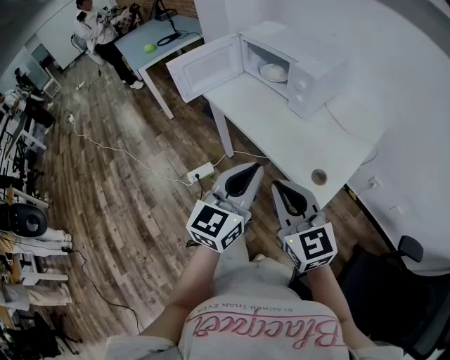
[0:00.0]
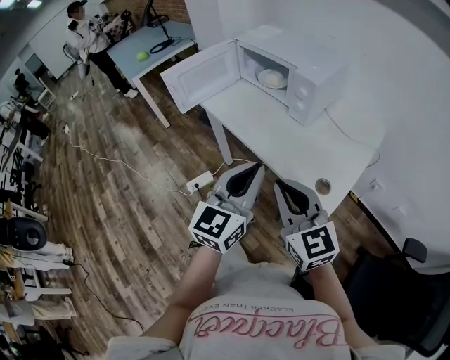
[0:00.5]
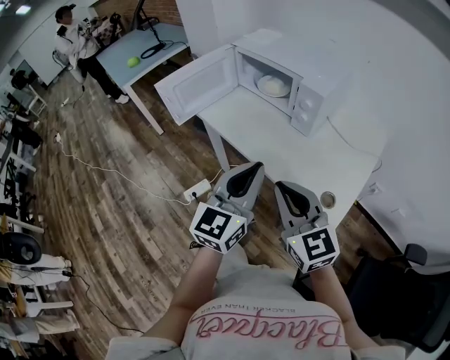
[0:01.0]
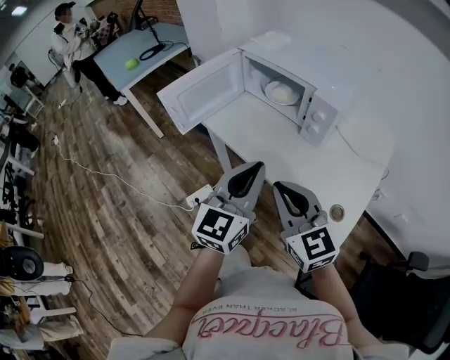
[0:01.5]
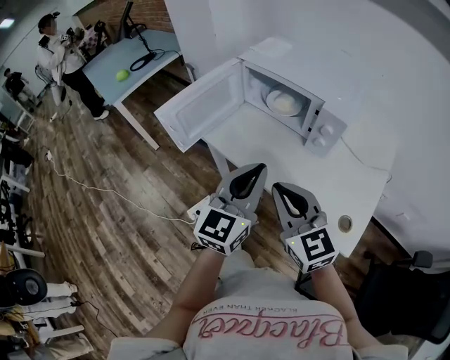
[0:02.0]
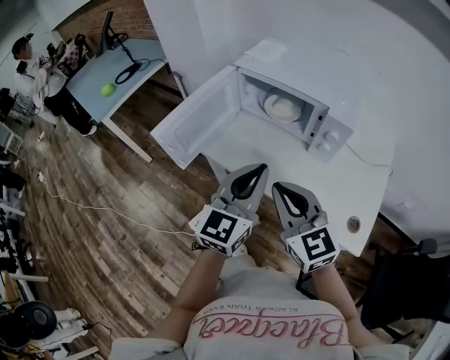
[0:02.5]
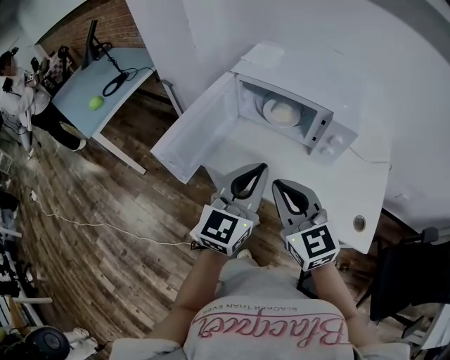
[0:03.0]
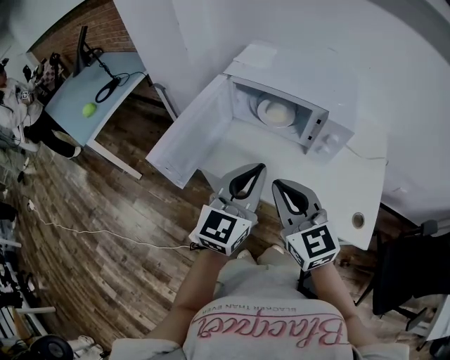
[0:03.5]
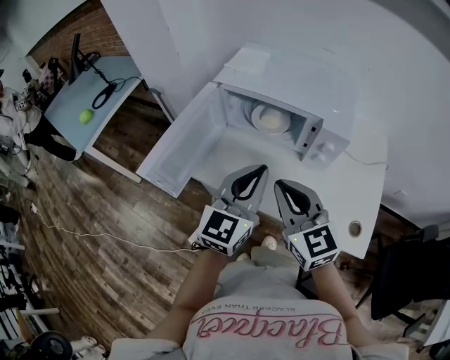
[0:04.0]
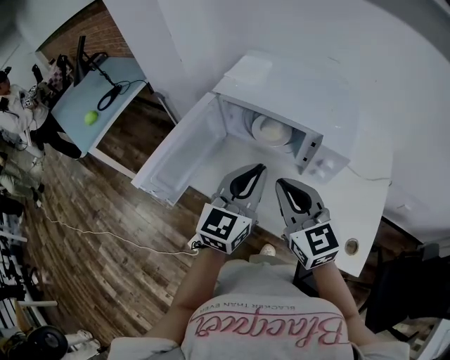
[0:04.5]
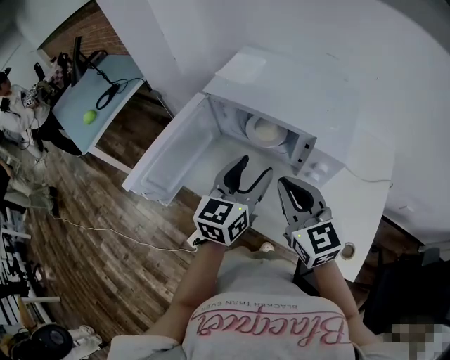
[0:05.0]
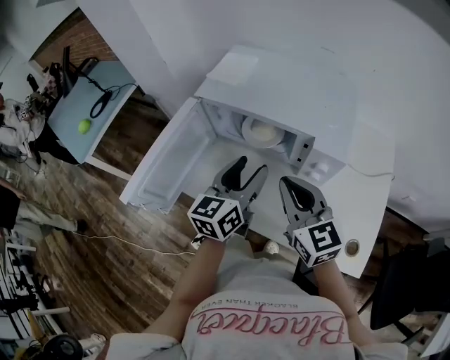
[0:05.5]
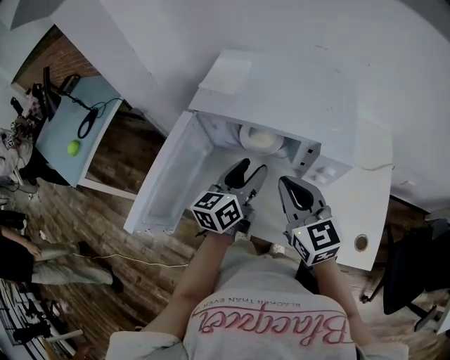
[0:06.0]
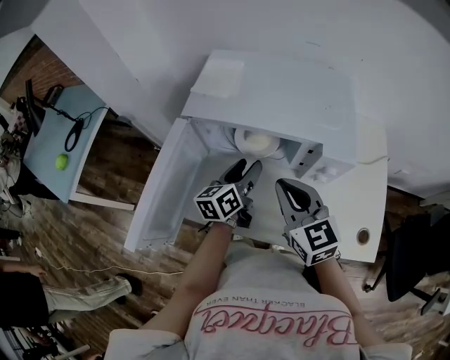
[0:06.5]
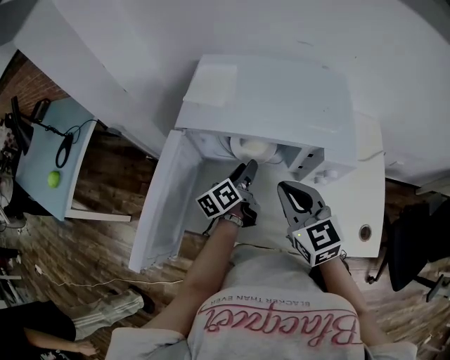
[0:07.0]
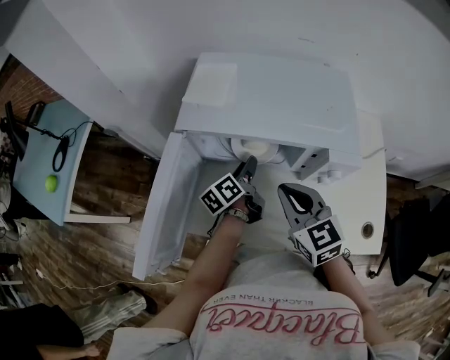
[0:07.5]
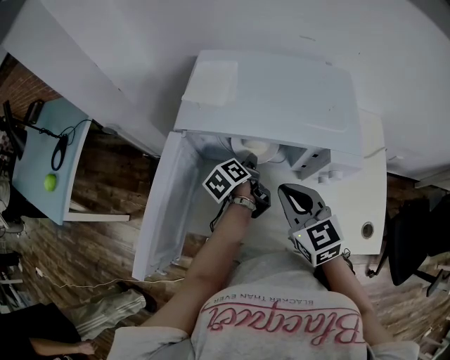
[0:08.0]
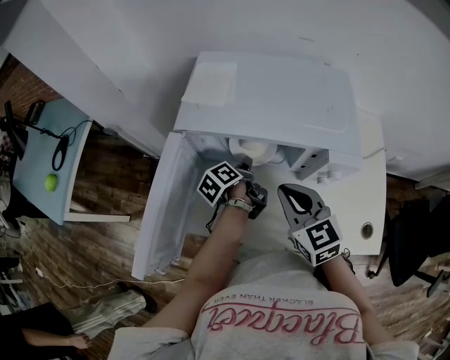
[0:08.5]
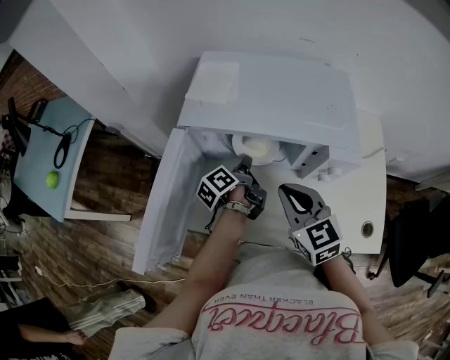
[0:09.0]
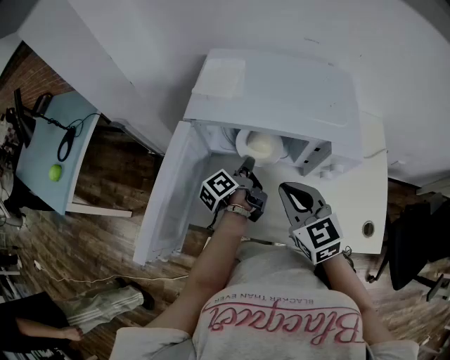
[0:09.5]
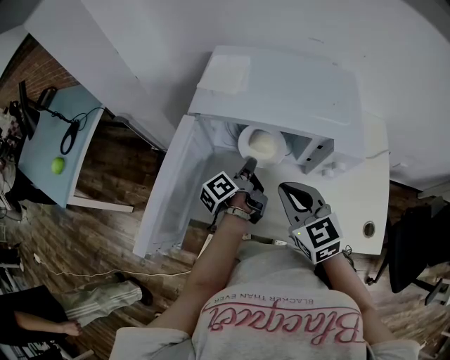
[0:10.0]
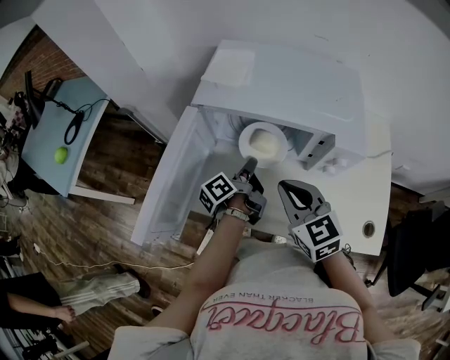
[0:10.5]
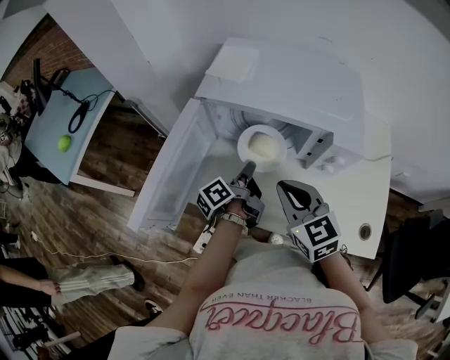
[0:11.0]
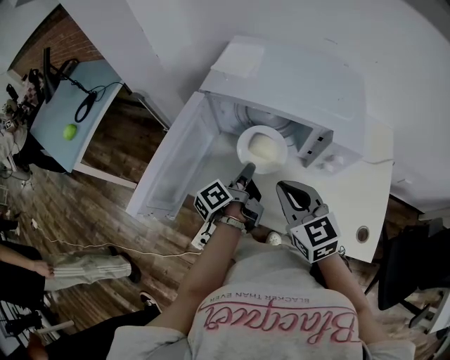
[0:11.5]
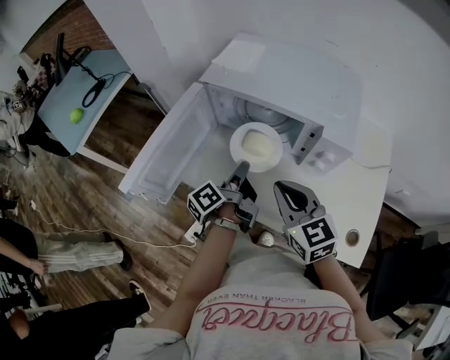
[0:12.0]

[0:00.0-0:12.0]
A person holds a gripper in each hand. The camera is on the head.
0:00.0 to 0:02.0: The two grippers go about 25 cm forward and to the left.
0:02.0 to 0:04.0: Both grippers travel together forward, roughly 10 cm.
0:04.0 to 0:06.0: The left gripper moves forward and downward, approximately 20 cm, changes its angle by some 30 degrees, and opens its fingers. The right gripper is displaced forward by some 10 cm.
0:06.0 to 0:08.0: The left gripper shifts about 15 cm downward and forward, and rotates around the line of its fingers by some 40 degrees, counterclockwise from behind; the right gripper goes about 5 cm downward.
0:08.0 to 0:10.0: The left gripper shifts by approximately 5 cm, rotates approximately 30 degrees, and closes its fingers.
0:10.0 to 0:12.0: The left gripper shifts some 10 cm backward, while the right gripper shifts about 5 cm backward.

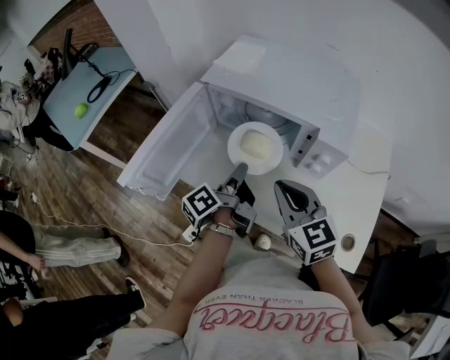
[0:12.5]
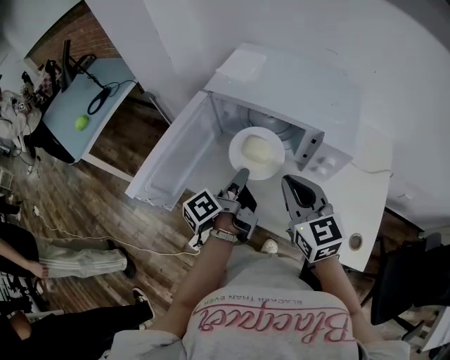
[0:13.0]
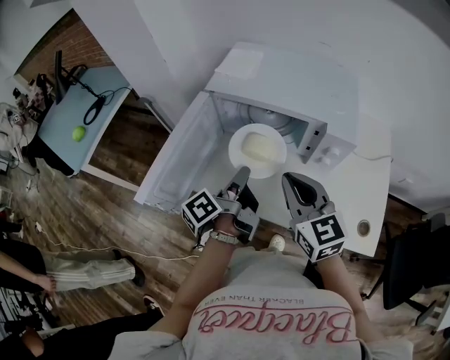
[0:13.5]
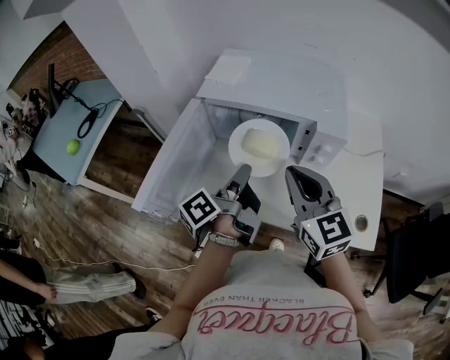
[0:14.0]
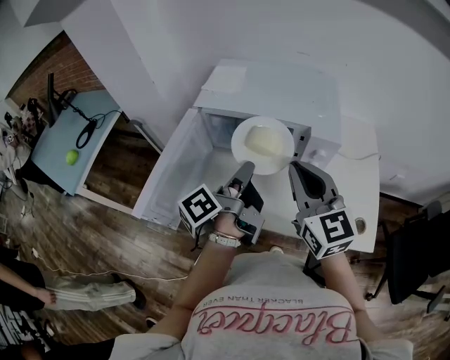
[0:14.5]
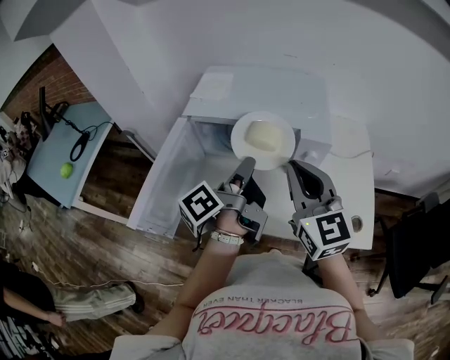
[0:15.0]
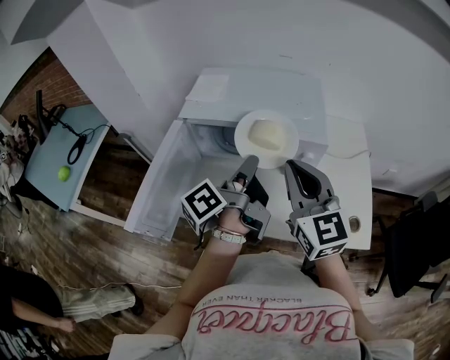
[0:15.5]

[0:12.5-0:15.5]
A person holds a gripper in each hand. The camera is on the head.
0:12.5 to 0:14.0: Both grippers move upward, some 5 cm.
0:14.0 to 0:15.5: The right gripper changes place by about 5 cm, while the left gripper shifts some 10 cm to the right and upward.

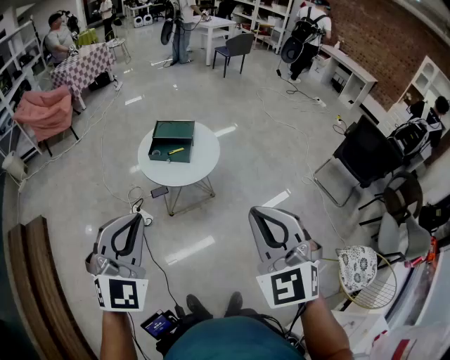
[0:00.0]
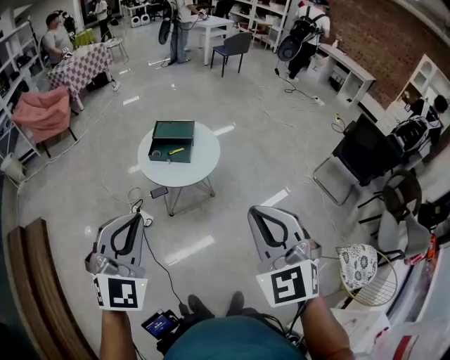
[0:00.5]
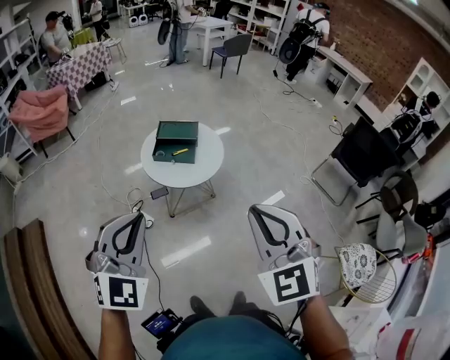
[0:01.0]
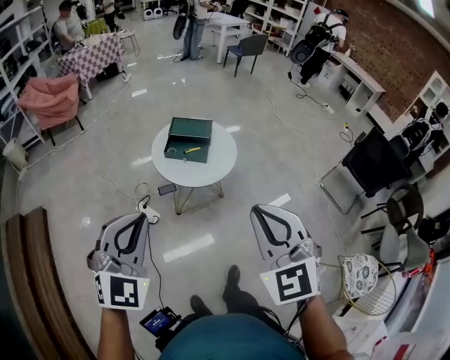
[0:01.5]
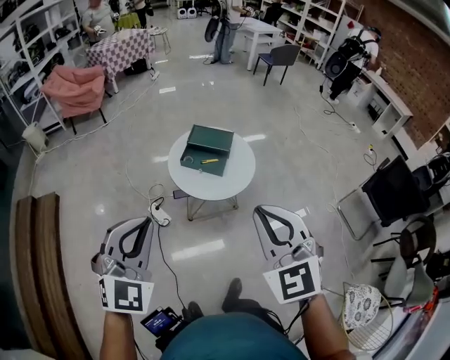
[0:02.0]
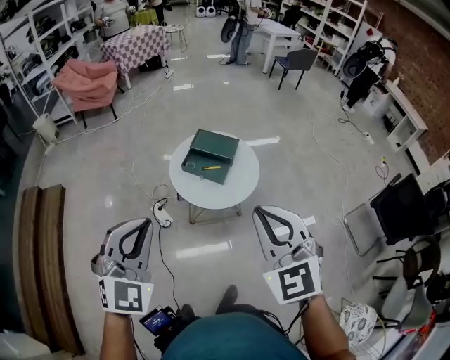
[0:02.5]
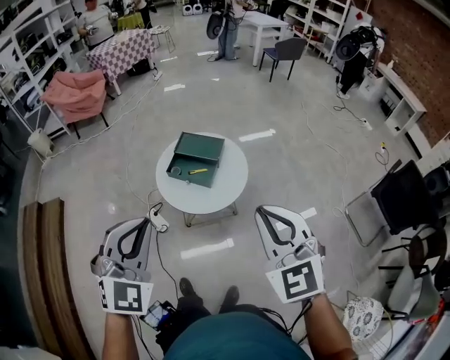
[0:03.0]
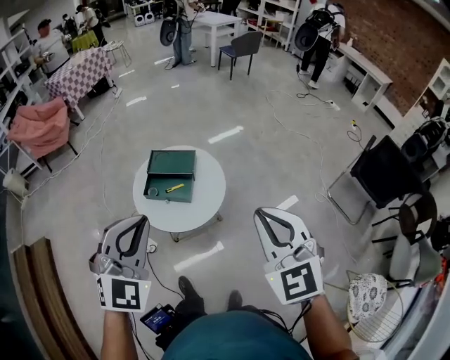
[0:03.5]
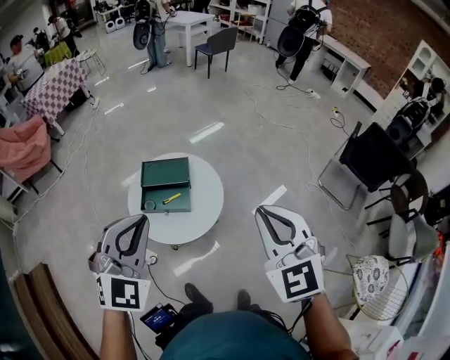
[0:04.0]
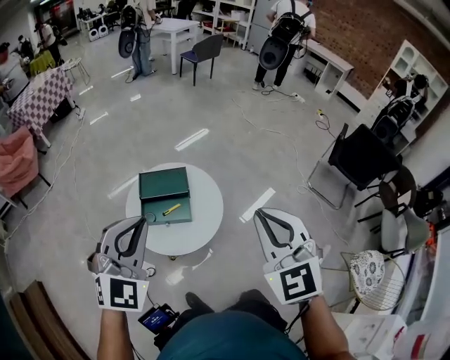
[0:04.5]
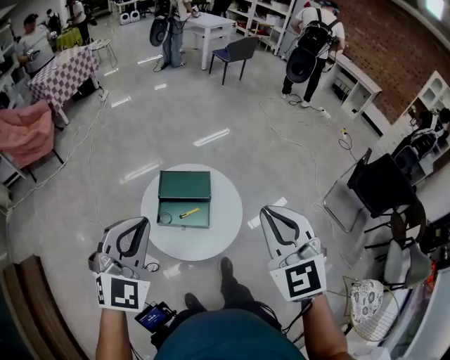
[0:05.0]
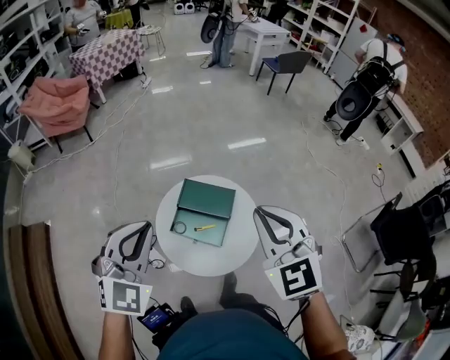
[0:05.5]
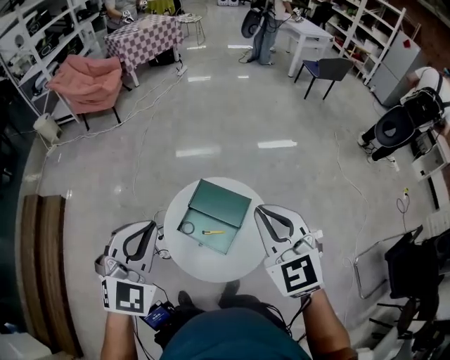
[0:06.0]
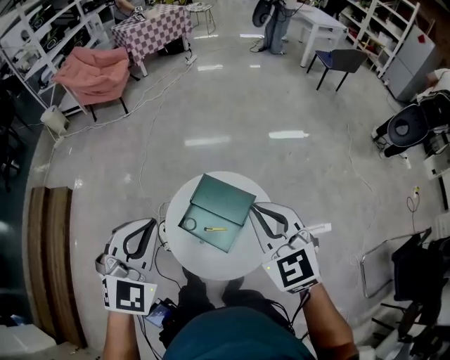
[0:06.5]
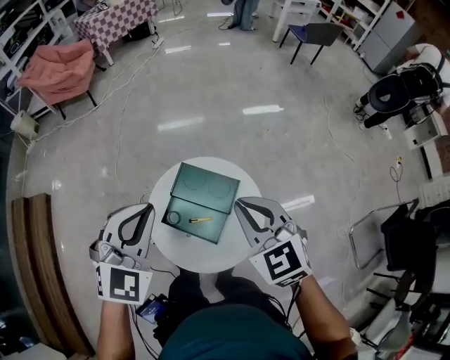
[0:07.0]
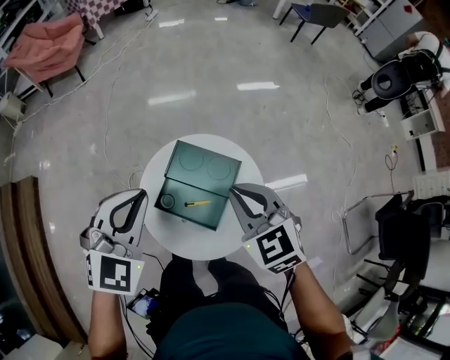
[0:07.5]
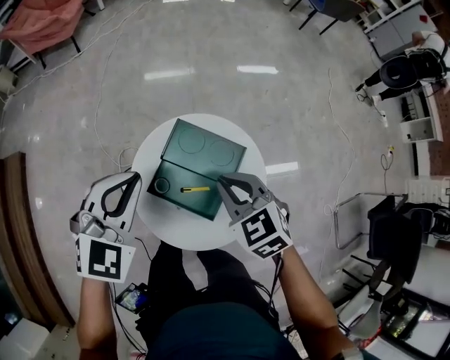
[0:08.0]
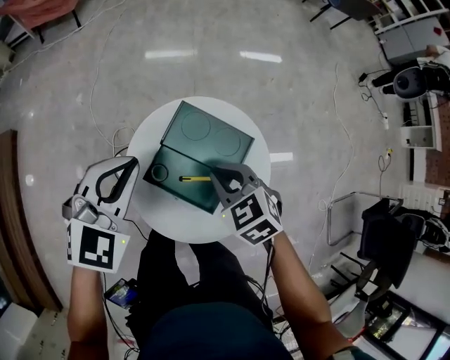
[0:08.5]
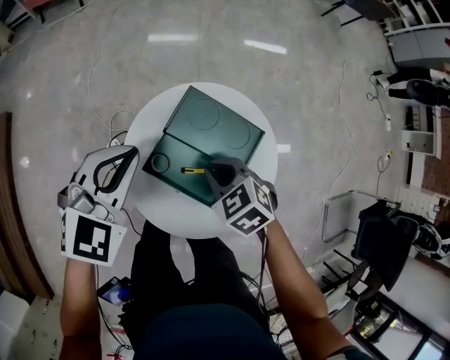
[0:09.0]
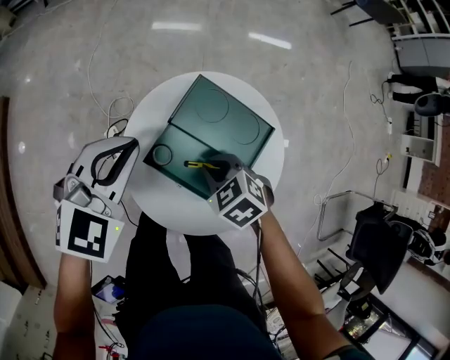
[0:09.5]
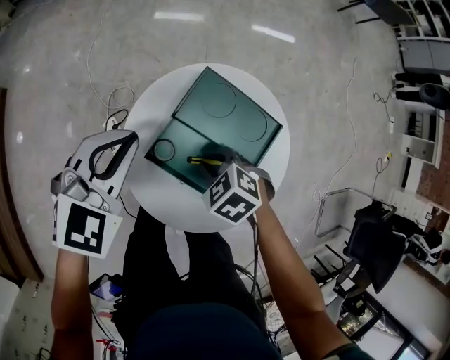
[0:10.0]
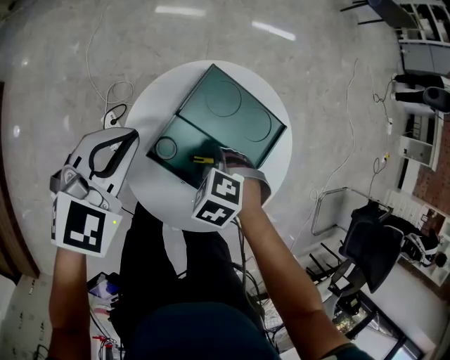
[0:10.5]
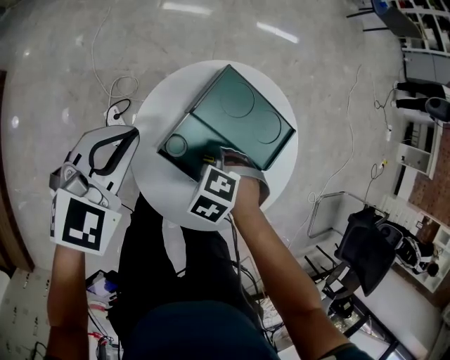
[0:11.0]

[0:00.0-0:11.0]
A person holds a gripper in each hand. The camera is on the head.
0:00.0 to 0:02.0: Both grippers move forward and to the left, approximately 20 cm.
0:02.0 to 0:03.5: The left gripper goes approximately 35 cm forward and to the right, while the right gripper moves to the right and forward, approximately 30 cm.
0:03.5 to 0:05.5: Both grippers are carried forward and to the left, some 40 cm.
0:05.5 to 0:07.5: The right gripper goes some 40 cm downward and forward, and swivels approximately 20 degrees, while the left gripper heads forward and downward, covering roughly 30 cm.
0:07.5 to 0:09.0: Both grippers travel together downward, some 25 cm. The right gripper swivels approximately 30 degrees.
0:09.0 to 0:11.0: The grippers both shift downward by roughly 10 cm. The right gripper swivels approximately 30 degrees.

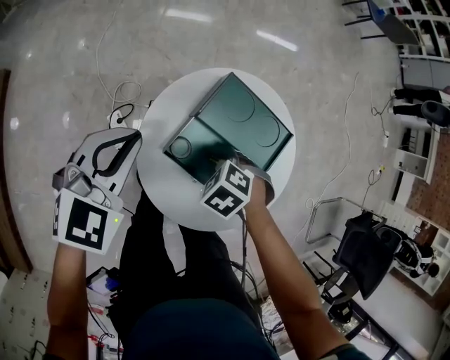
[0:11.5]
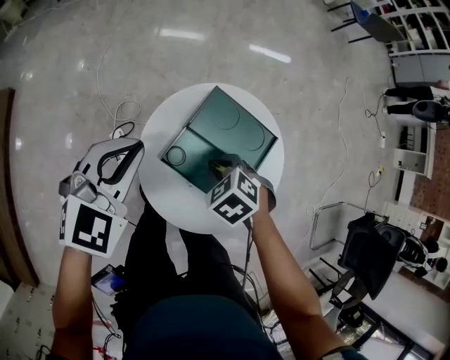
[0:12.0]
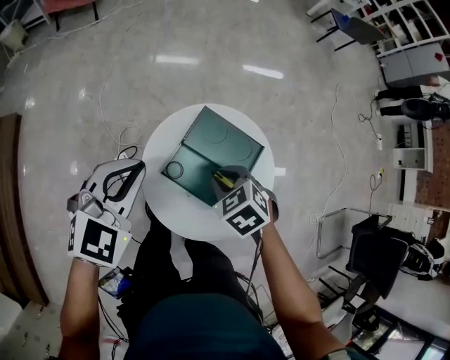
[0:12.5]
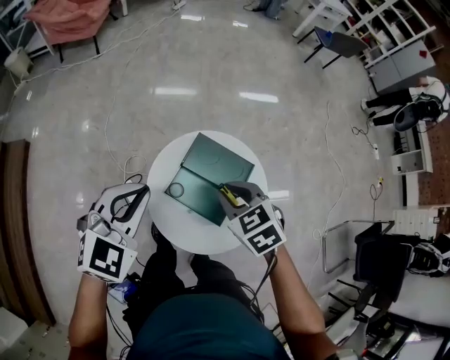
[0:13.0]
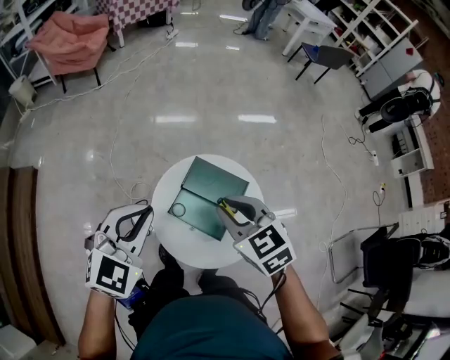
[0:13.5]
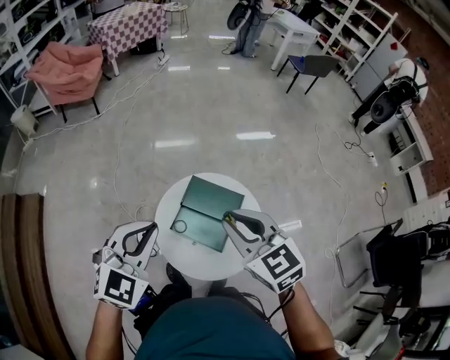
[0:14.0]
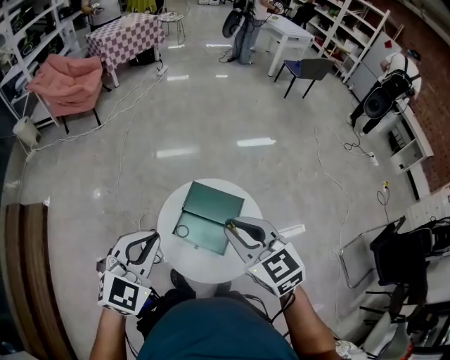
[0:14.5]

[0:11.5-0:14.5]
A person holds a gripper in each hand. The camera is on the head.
0:11.5 to 0:13.0: Both grippers move upward, some 30 cm. The right gripper turns by some 40 degrees.
0:13.0 to 0:14.5: The two grippers go about 25 cm upward and backward. The right gripper turns by approximately 30 degrees.
